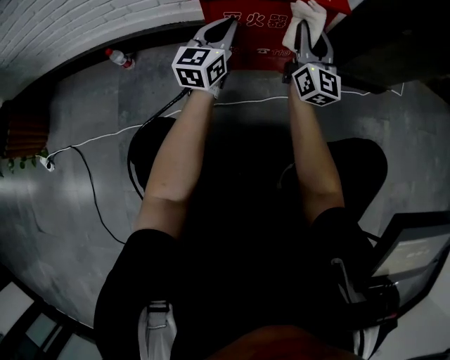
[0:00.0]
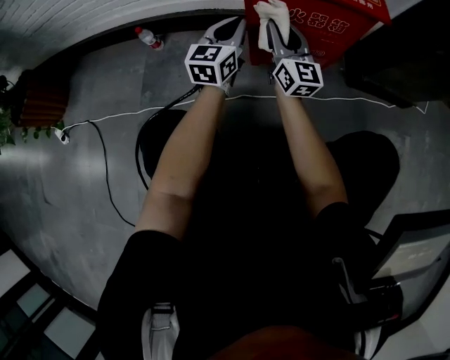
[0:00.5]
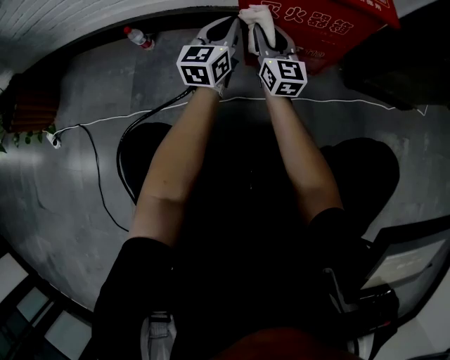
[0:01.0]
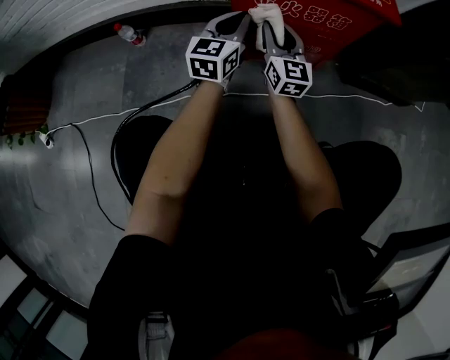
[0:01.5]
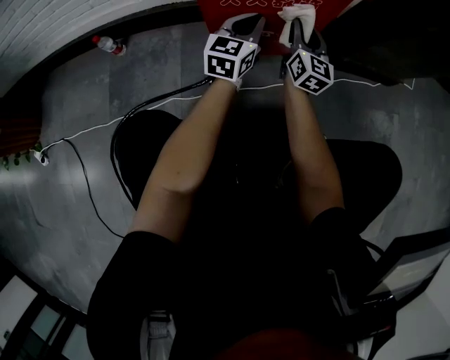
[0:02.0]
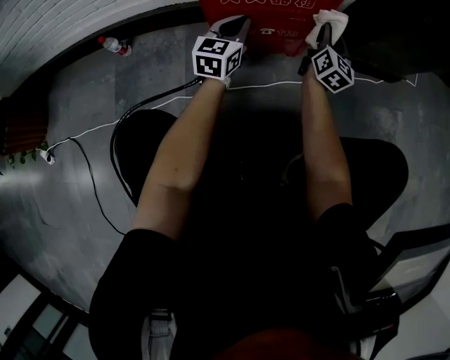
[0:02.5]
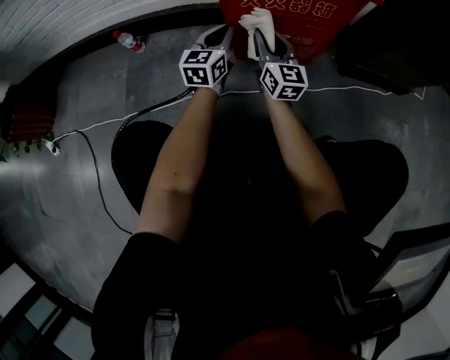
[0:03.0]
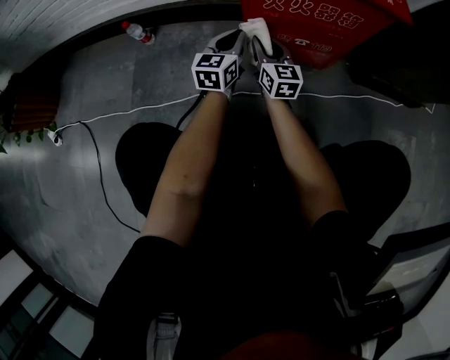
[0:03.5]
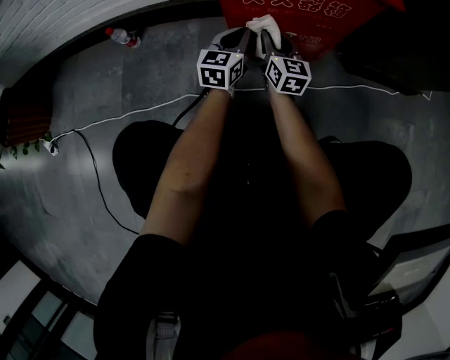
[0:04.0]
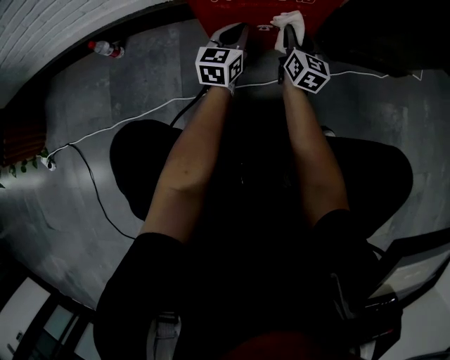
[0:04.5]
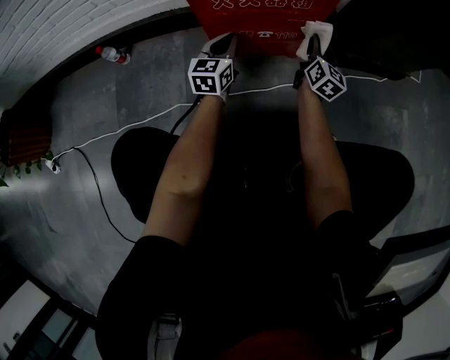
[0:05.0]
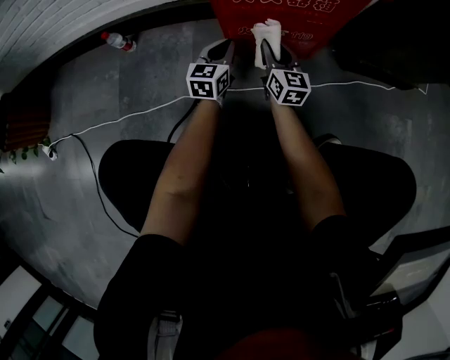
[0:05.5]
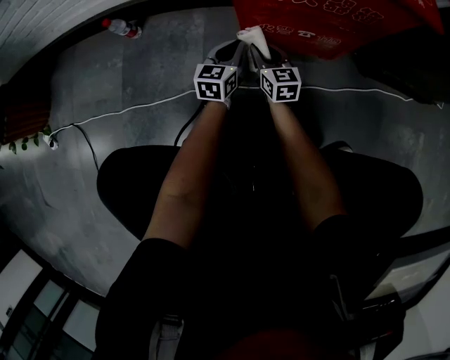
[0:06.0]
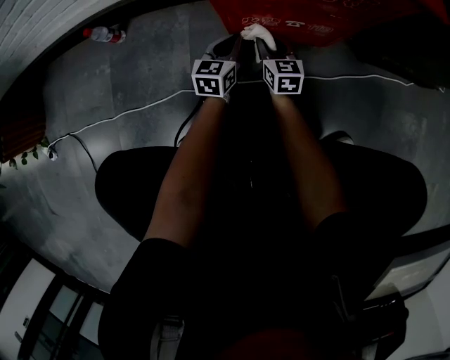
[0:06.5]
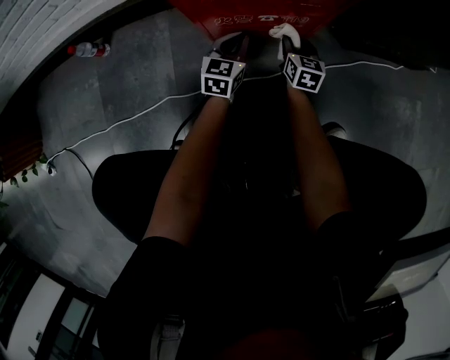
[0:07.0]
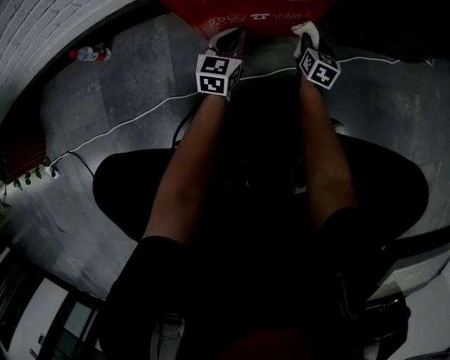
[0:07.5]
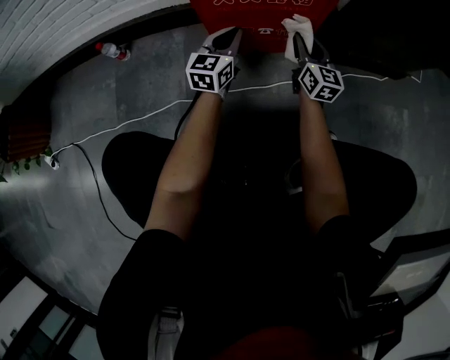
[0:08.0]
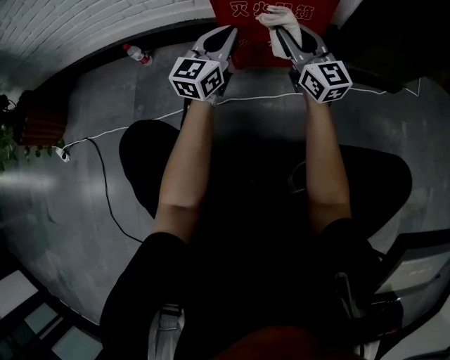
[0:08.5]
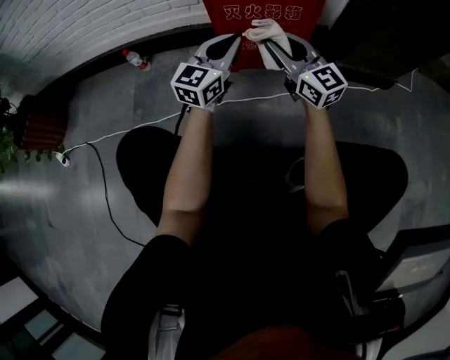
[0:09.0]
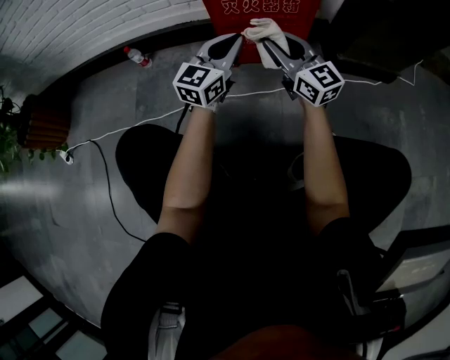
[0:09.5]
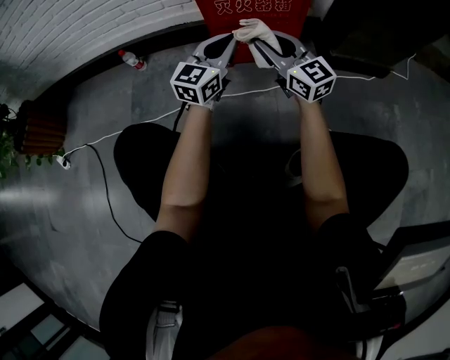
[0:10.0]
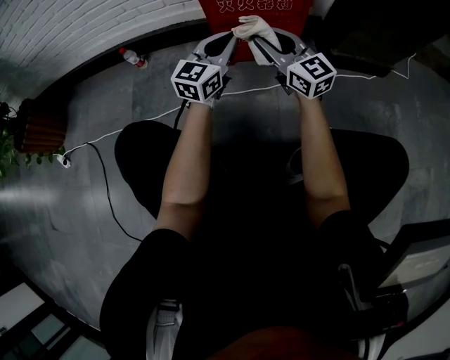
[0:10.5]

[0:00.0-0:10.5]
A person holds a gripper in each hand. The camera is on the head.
0:00.0 to 0:02.0: The left gripper shifts some 10 cm downward and to the right, while the right gripper travels downward by approximately 15 cm, and moves some 20 cm to the left and comes back.
0:02.0 to 0:04.0: The left gripper moves to the left and downward, about 10 cm; the right gripper swings left and right, approximately 30 cm each way, with 2 reversals.
0:04.0 to 0:06.5: The right gripper moves left and right over roughly 30 cm, changing direction 2 times. Meanwhile the left gripper moves downward, approximately 10 cm.
0:06.5 to 0:08.5: Both grippers travel together upward, approximately 35 cm. The right gripper angles its fingers upward, by about 30 degrees. The left gripper changes its angle by about 30 degrees.
0:08.5 to 0:10.5: The right gripper changes place by about 5 cm. The left gripper moves approximately 5 cm.

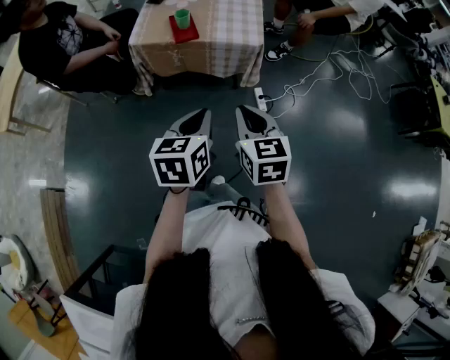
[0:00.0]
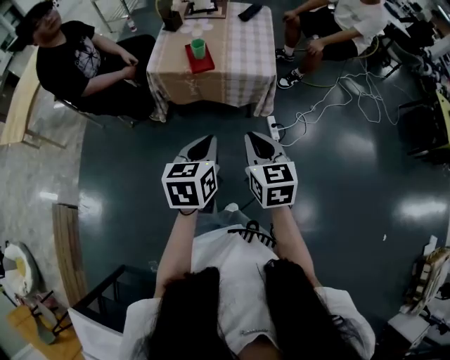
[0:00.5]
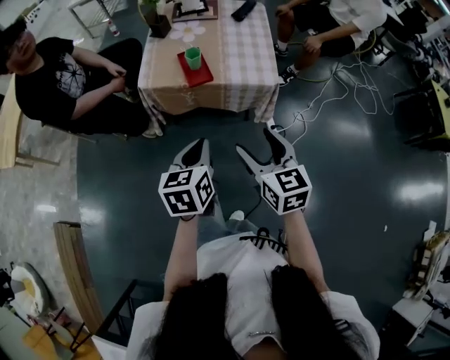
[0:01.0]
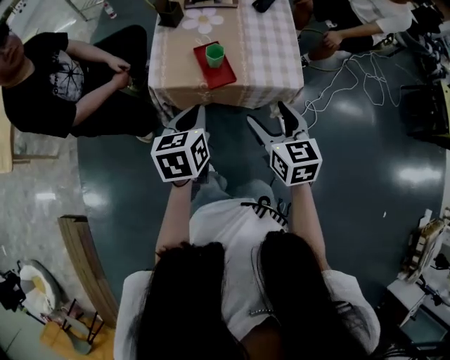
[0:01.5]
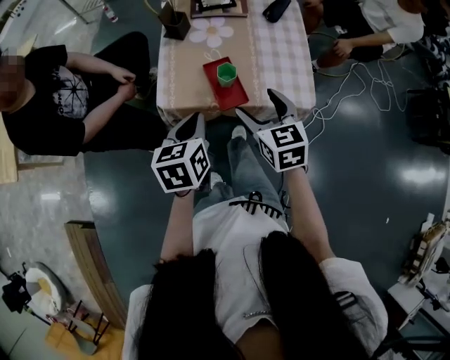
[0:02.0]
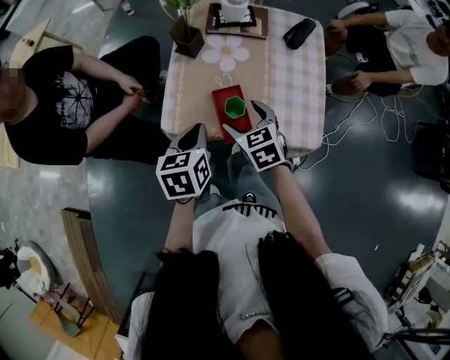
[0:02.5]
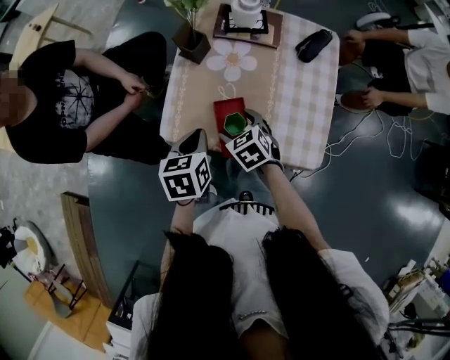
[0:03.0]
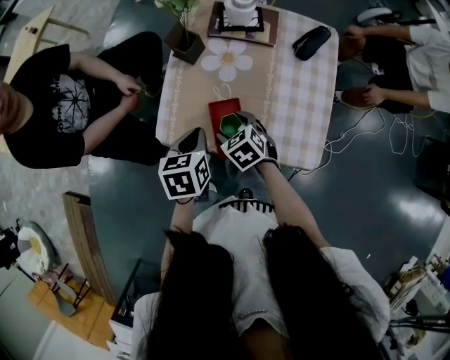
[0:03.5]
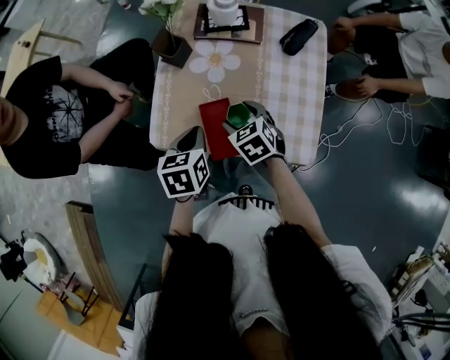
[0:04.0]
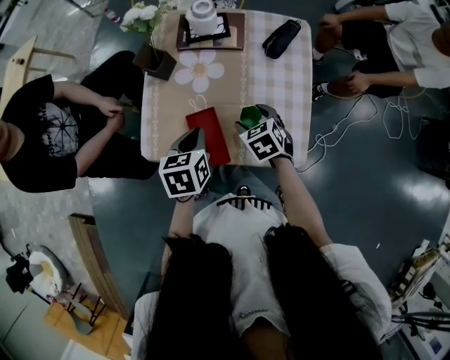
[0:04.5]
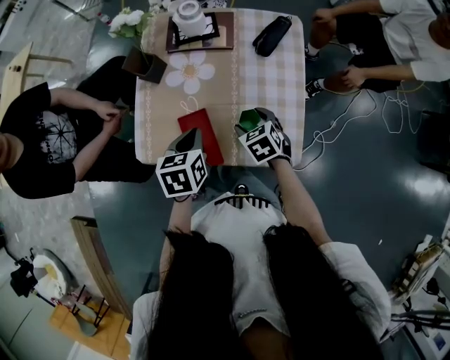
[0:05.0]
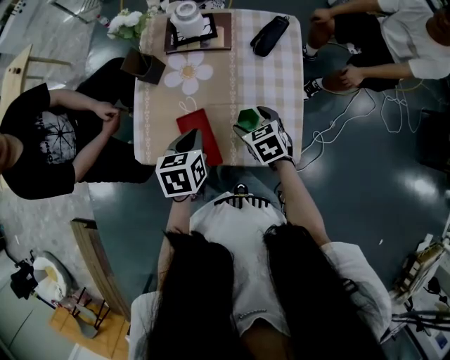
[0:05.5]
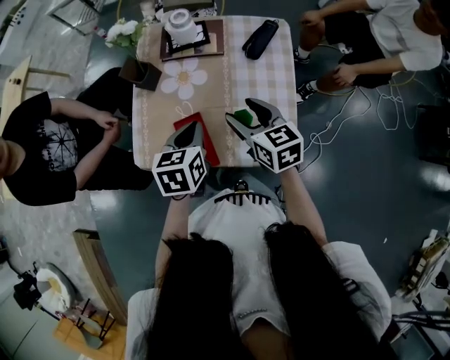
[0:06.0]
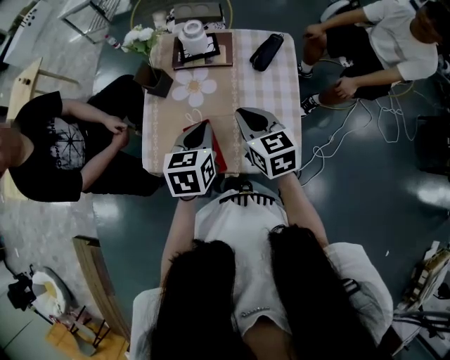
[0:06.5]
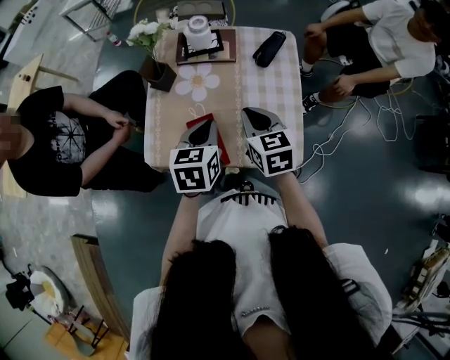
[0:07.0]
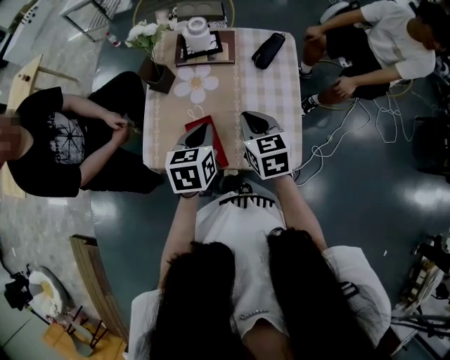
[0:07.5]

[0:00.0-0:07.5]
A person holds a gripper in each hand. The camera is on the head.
0:00.0 to 0:02.0: The grippers both shift forward and to the left by roughly 40 cm. The right gripper opens.
0:02.0 to 0:04.0: The right gripper heads forward and downward, covering about 20 cm, and swivels approximately 30 degrees; the left gripper moves forward, downward and to the right, some 15 cm.
0:04.0 to 0:05.5: The right gripper moves to the right, some 10 cm; the left gripper travels to the right by roughly 10 cm.
0:05.5 to 0:07.5: The right gripper moves upward, roughly 15 cm, turns by some 20 degrees, and closes. The left gripper is displaced upward by approximately 5 cm.

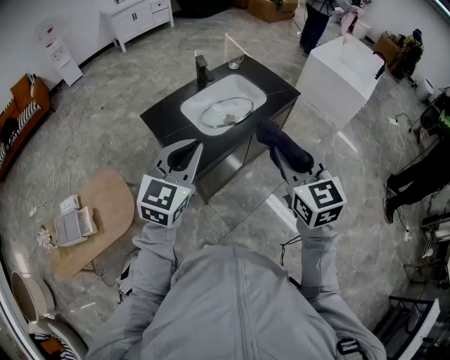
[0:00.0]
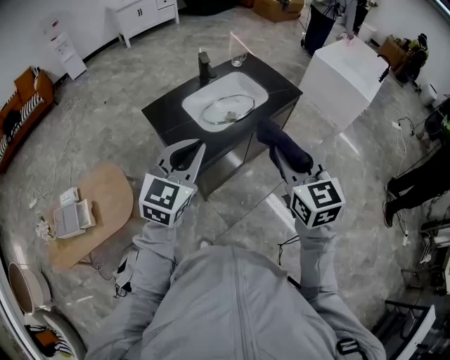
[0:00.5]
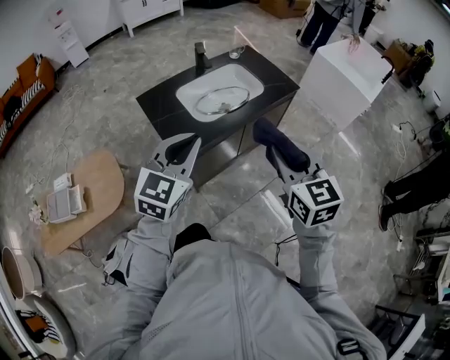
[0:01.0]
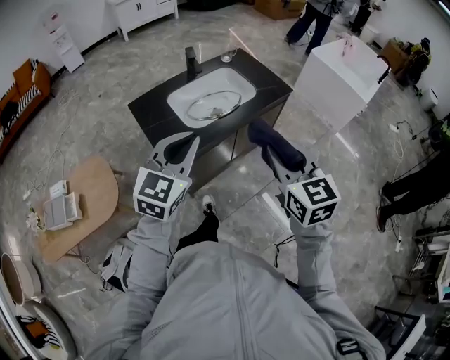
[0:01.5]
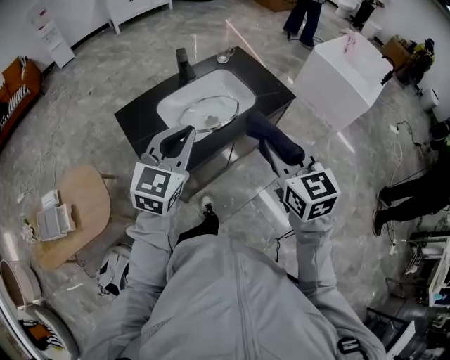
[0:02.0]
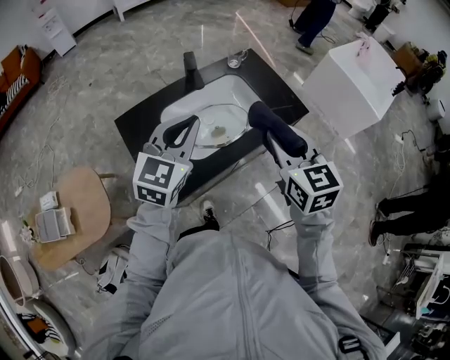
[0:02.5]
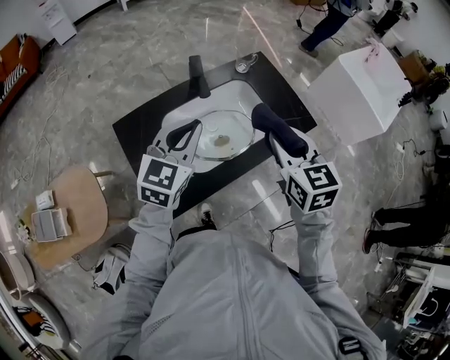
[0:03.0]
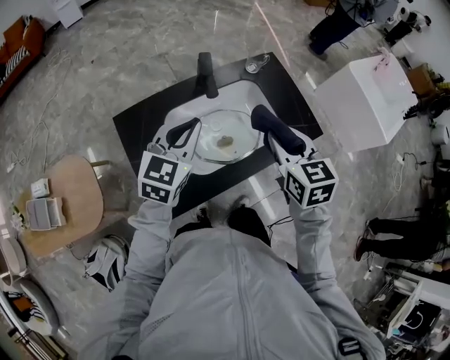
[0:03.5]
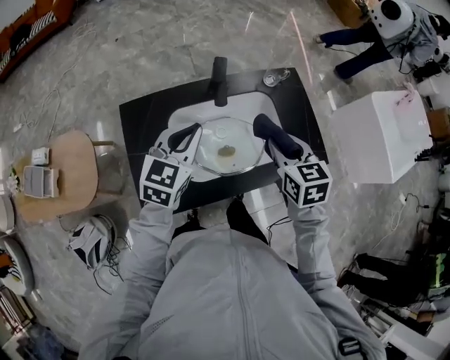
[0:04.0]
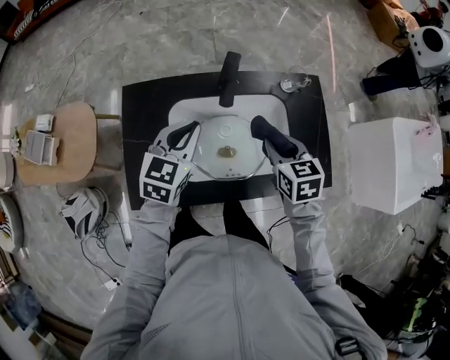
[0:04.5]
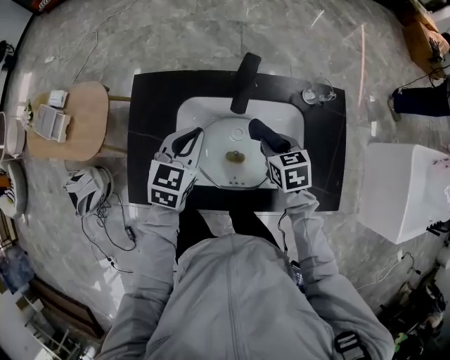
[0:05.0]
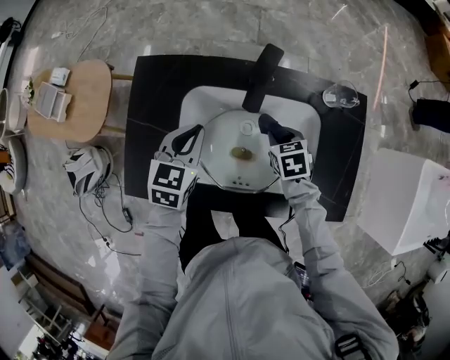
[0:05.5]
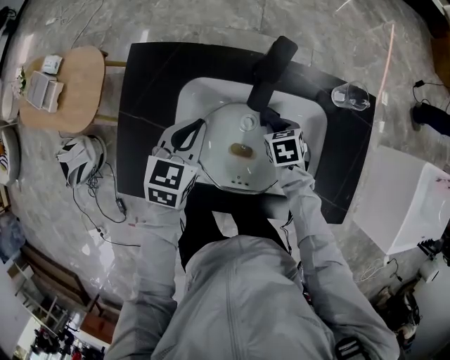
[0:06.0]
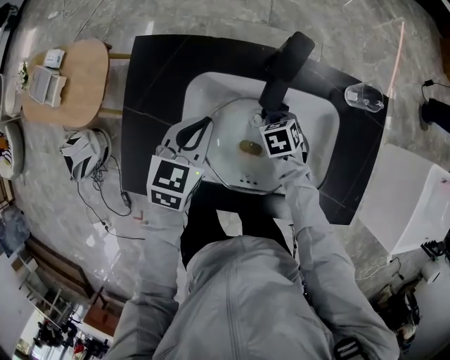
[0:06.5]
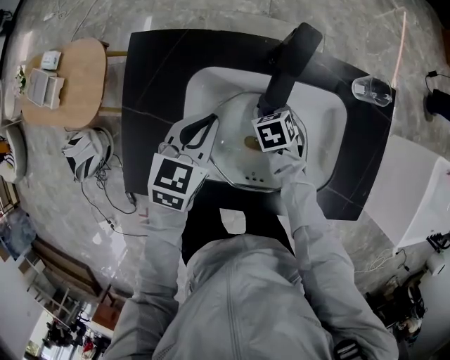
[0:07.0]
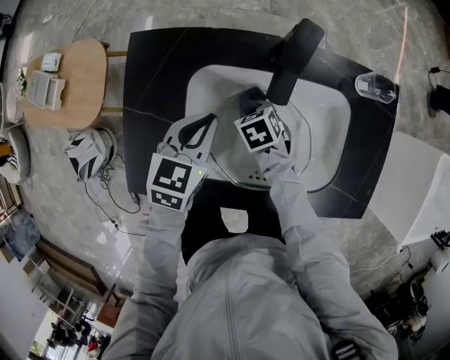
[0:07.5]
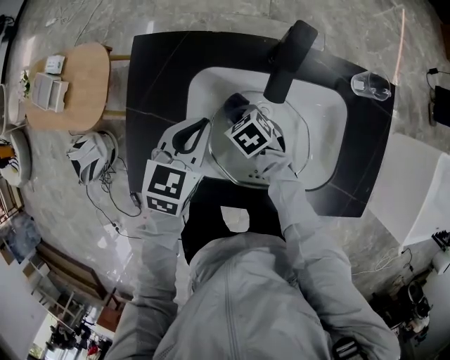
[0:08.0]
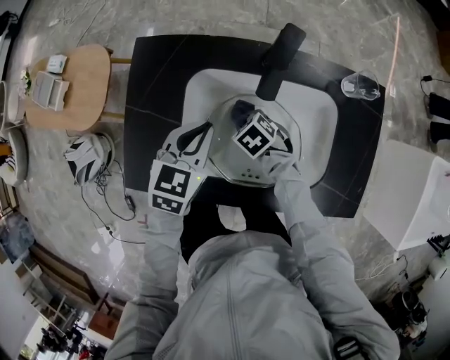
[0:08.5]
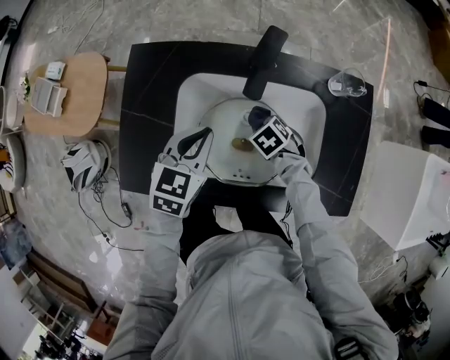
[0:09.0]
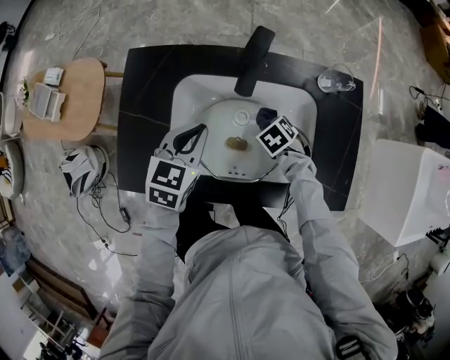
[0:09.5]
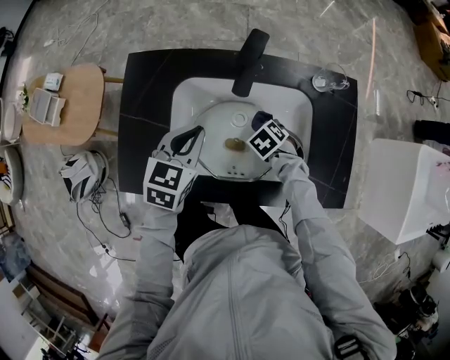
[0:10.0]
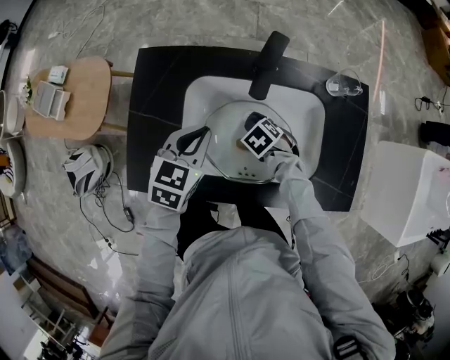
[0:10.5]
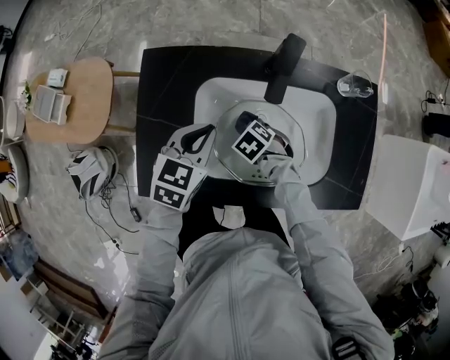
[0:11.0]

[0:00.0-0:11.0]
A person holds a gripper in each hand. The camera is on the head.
0:00.0 to 0:02.0: Both grippers travel together forward and to the right, roughly 15 cm.
0:02.0 to 0:03.5: Both grippers move forward, approximately 20 cm.
0:03.5 to 0:05.5: The left gripper heads downward, covering approximately 20 cm, and turns by roughly 40 degrees; the right gripper shifts approximately 30 cm downward, and tips its fingers downward by some 30 degrees.
0:05.5 to 0:07.5: The right gripper shifts some 15 cm to the left and downward.
0:07.5 to 0:09.0: The left gripper shifts by about 5 cm, while the right gripper is displaced to the right and backward by some 10 cm.
0:09.0 to 0:11.0: The right gripper moves about 10 cm.
